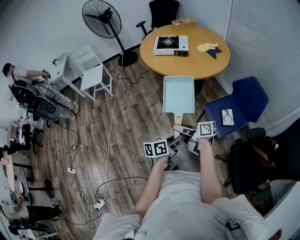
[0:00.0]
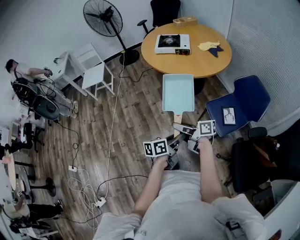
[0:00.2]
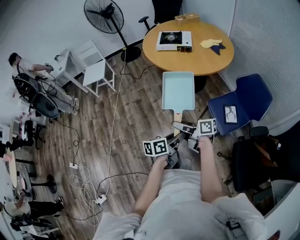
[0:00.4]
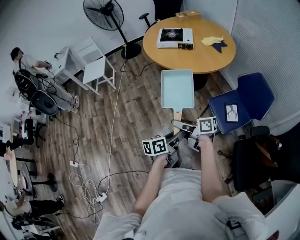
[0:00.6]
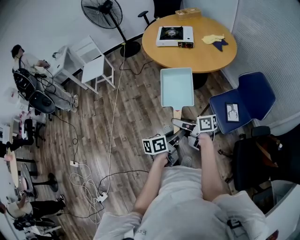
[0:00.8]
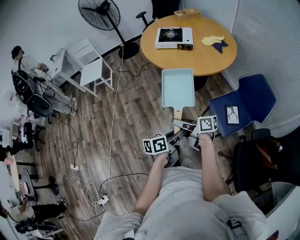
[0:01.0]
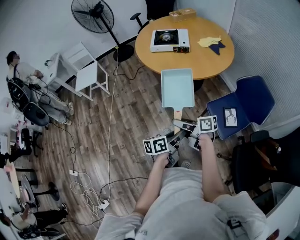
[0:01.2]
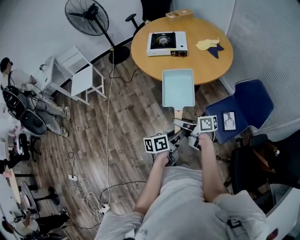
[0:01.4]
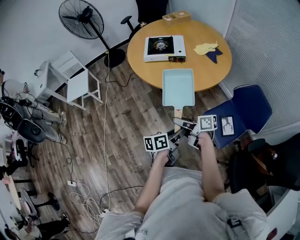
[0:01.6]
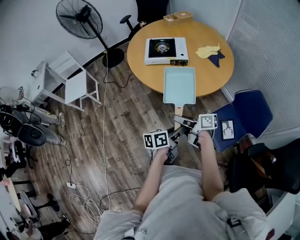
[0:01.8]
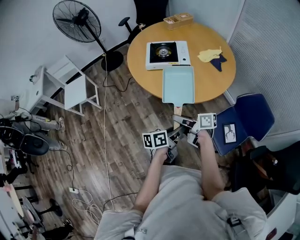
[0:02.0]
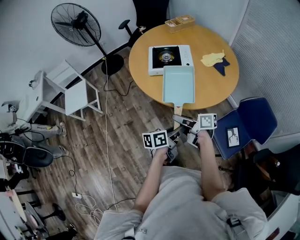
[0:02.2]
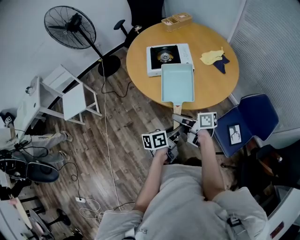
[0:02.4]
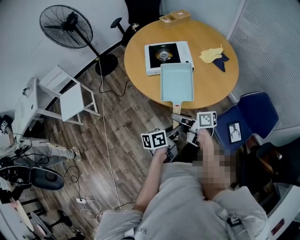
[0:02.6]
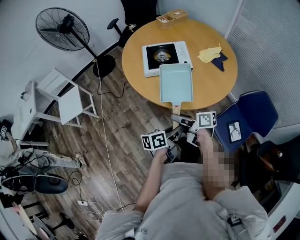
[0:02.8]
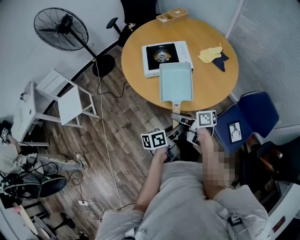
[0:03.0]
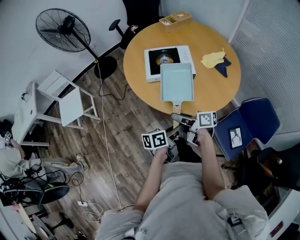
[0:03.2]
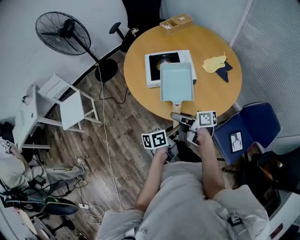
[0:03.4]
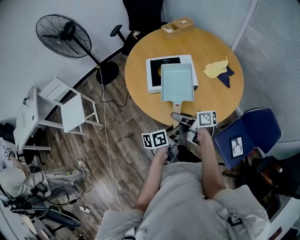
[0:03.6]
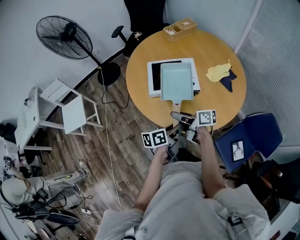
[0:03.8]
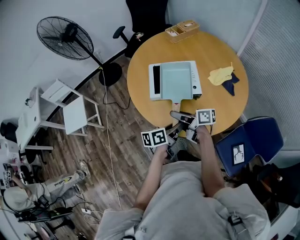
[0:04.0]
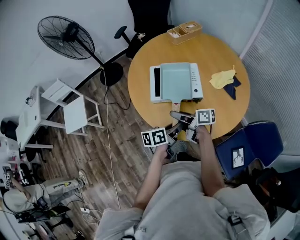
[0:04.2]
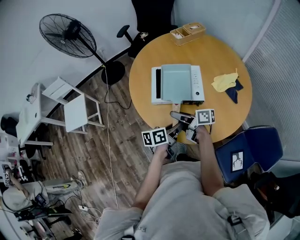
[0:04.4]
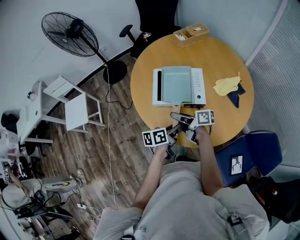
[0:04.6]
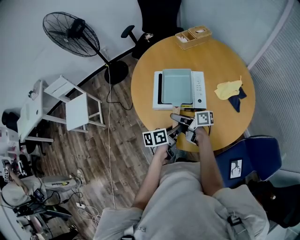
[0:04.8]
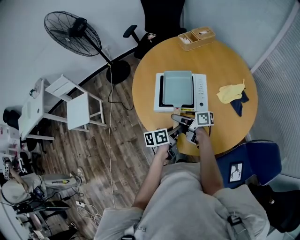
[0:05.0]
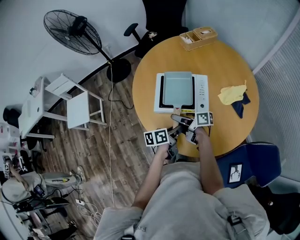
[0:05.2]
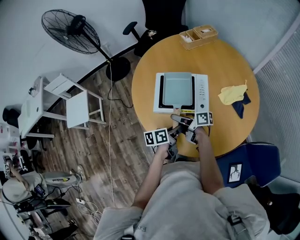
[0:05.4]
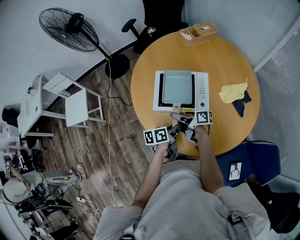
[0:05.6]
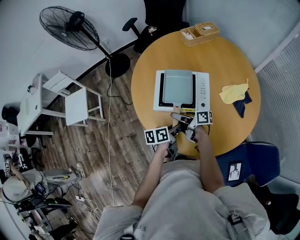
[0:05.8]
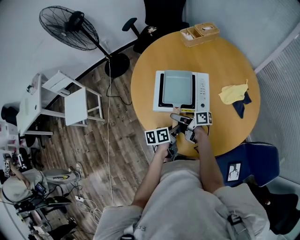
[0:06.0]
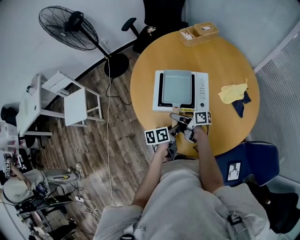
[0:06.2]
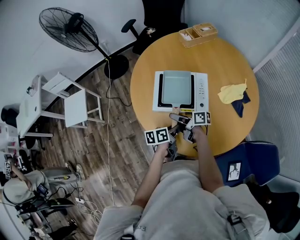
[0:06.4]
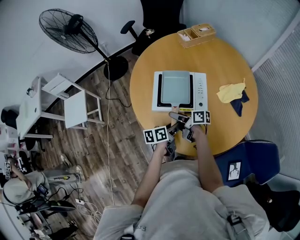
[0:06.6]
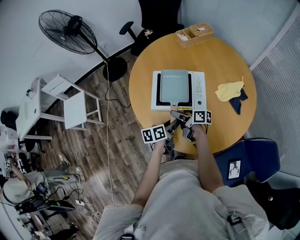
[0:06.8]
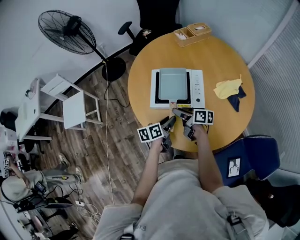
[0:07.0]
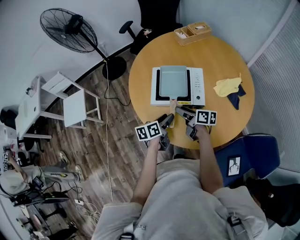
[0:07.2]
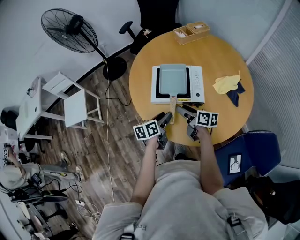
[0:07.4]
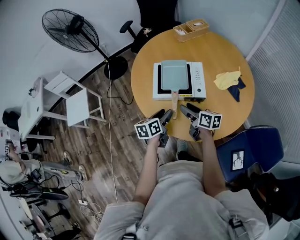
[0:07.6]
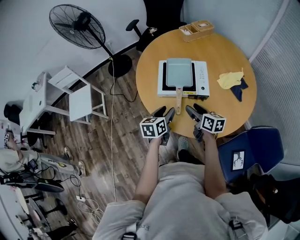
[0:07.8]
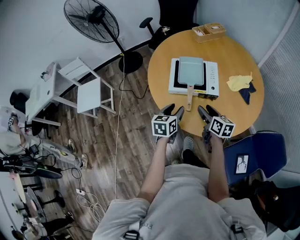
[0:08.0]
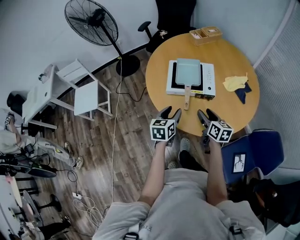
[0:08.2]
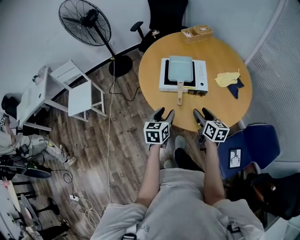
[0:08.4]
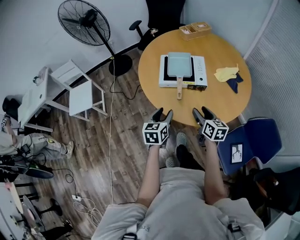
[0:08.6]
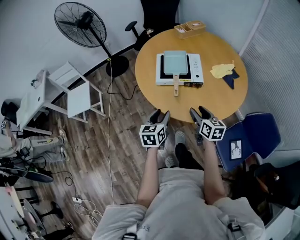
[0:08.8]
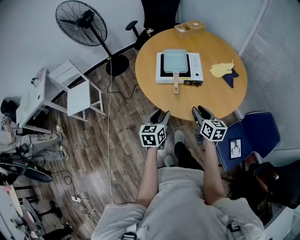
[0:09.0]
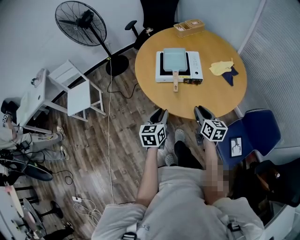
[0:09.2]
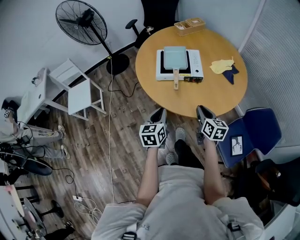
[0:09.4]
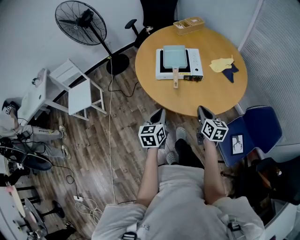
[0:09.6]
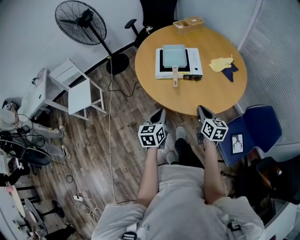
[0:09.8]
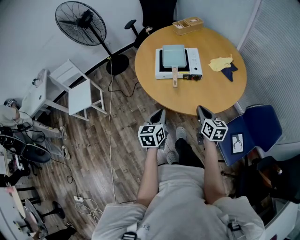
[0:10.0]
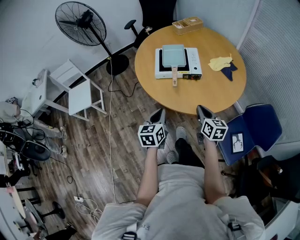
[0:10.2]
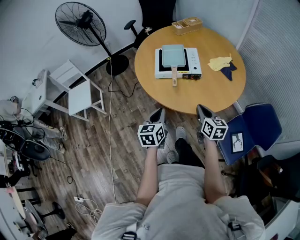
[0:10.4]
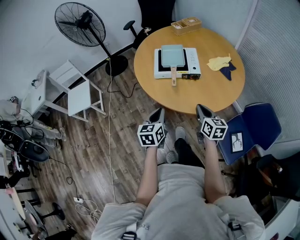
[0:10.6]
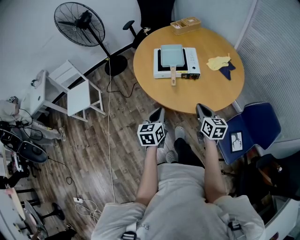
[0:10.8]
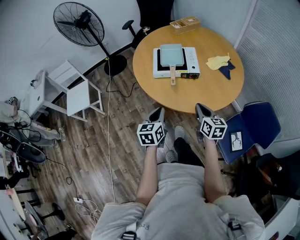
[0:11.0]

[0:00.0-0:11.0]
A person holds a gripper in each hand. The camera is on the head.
0:00.0 to 0:01.6: The grippers both shift forward by approximately 20 cm.
0:01.6 to 0:03.2: The grippers both shift forward by approximately 25 cm.
0:03.2 to 0:04.8: Both grippers travel together forward, roughly 20 cm.
0:04.8 to 0:06.2: The two grippers go approximately 5 cm downward.
0:06.2 to 0:07.8: The left gripper goes roughly 10 cm to the left and upward, swivels about 30 degrees, and opens up, while the right gripper travels backward, to the right and upward by about 10 cm, and swivels roughly 40 degrees.
0:07.8 to 0:09.4: The grippers both shift backward by some 15 cm. The right gripper turns by about 20 degrees, and closes its fingers; the left gripper closes its fingers.
0:09.4 to 0:11.0: There are only small adjustments of the grippers.

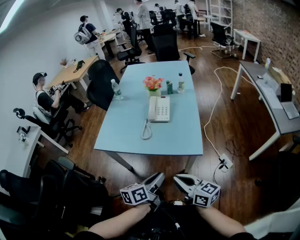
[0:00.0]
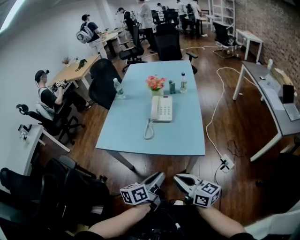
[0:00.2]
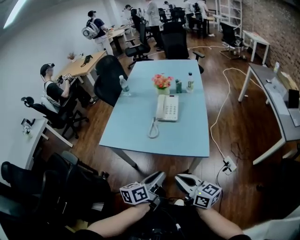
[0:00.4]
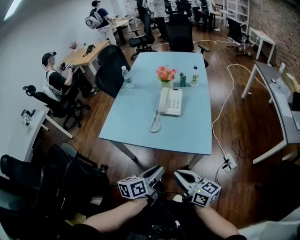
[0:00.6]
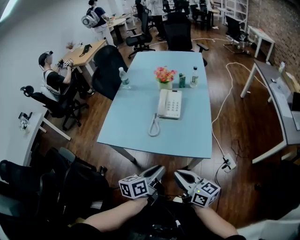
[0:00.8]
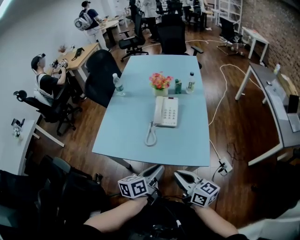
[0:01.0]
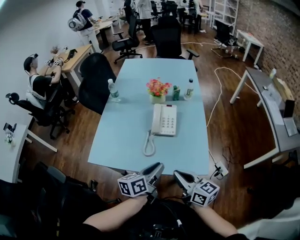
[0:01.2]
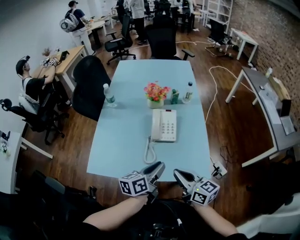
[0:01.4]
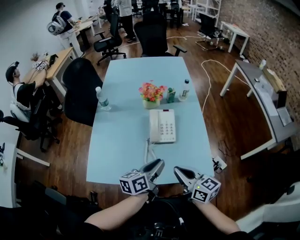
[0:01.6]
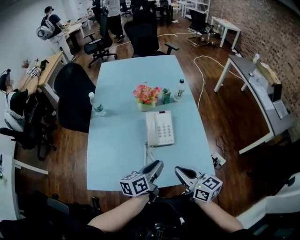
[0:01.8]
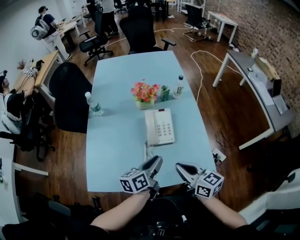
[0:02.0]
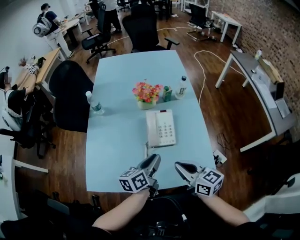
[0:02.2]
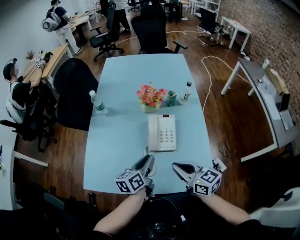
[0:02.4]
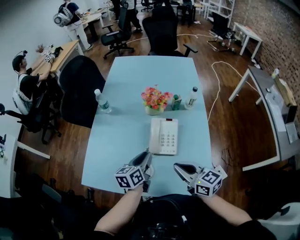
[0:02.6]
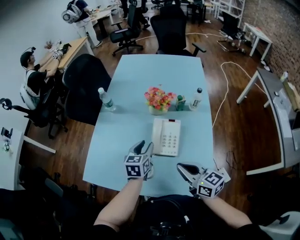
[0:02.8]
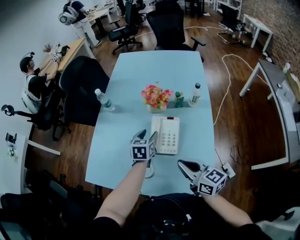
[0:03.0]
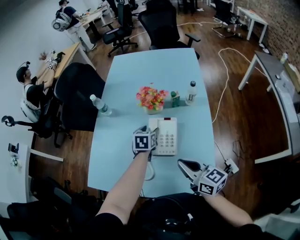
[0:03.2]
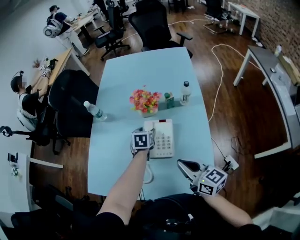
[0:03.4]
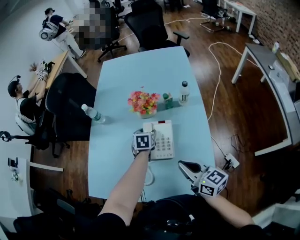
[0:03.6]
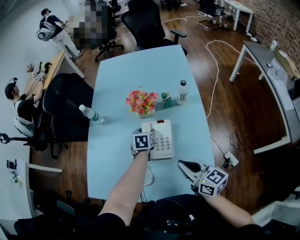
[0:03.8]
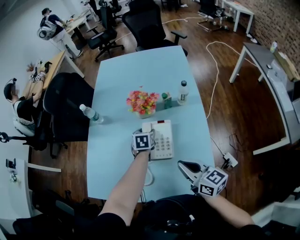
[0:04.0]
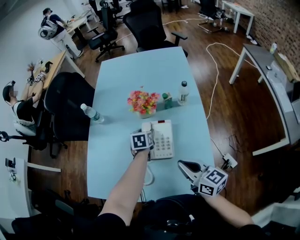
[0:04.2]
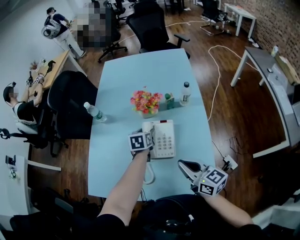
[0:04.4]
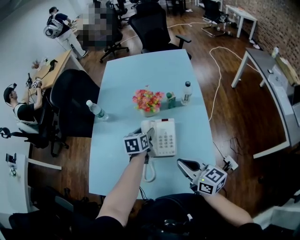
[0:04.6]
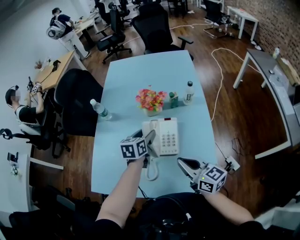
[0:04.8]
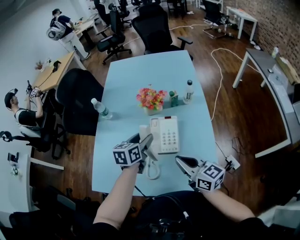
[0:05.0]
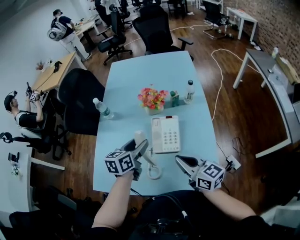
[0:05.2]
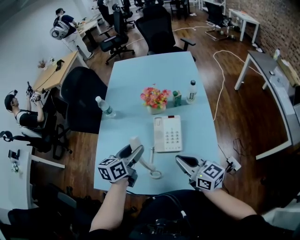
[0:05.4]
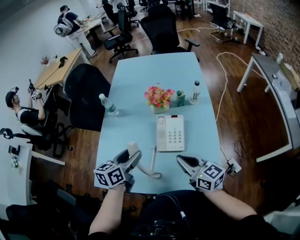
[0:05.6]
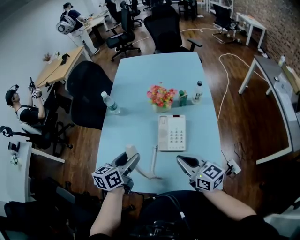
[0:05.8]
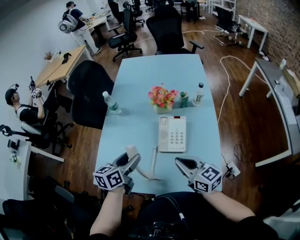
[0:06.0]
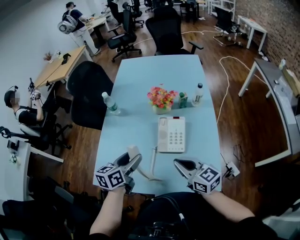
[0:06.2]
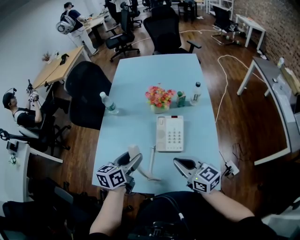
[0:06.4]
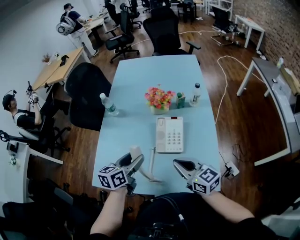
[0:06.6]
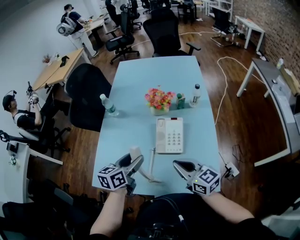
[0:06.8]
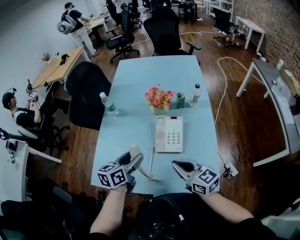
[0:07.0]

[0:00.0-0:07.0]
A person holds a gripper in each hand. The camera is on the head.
0:00.0 to 0:01.4: Both grippers travel together forward, roughly 25 cm.
0:01.4 to 0:02.8: The left gripper travels forward by some 20 cm, and turns by some 40 degrees; the right gripper heads forward, covering roughly 15 cm.
0:02.8 to 0:04.2: The left gripper shifts approximately 15 cm forward, downward and to the right, and opens its fingers.
0:04.2 to 0:05.6: The right gripper travels to the left by approximately 5 cm. Meanwhile the left gripper goes about 25 cm backward, upward and to the left, and swivels roughly 30 degrees.
0:05.6 to 0:07.0: There are only small adjustments of the grippers.

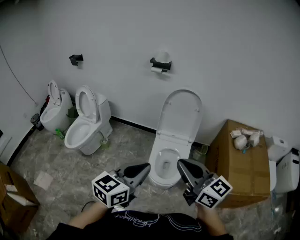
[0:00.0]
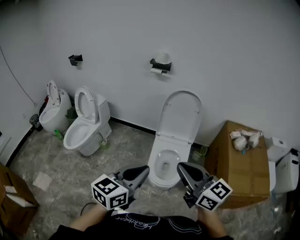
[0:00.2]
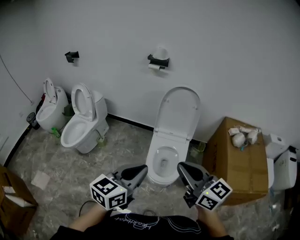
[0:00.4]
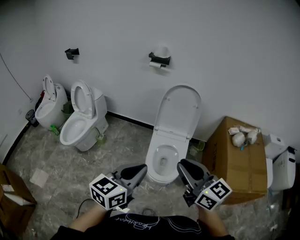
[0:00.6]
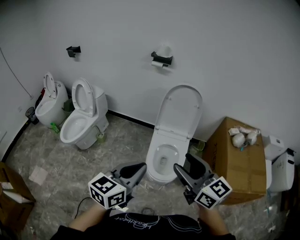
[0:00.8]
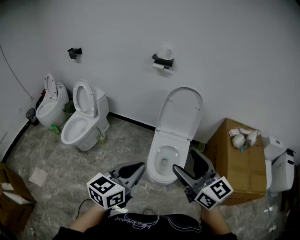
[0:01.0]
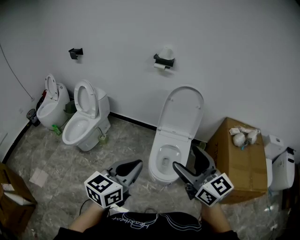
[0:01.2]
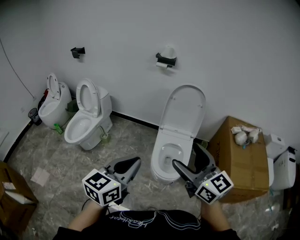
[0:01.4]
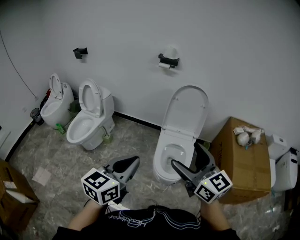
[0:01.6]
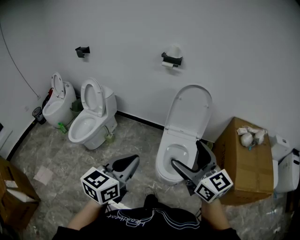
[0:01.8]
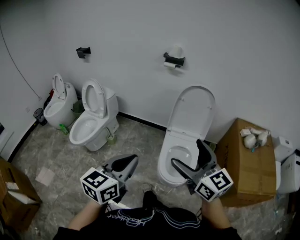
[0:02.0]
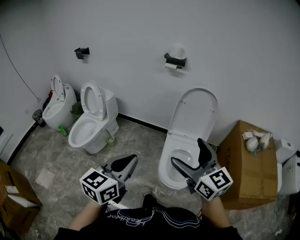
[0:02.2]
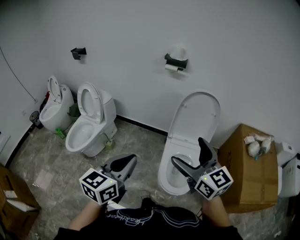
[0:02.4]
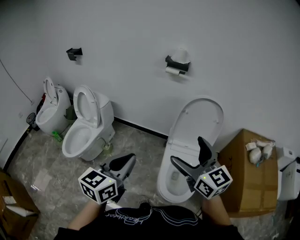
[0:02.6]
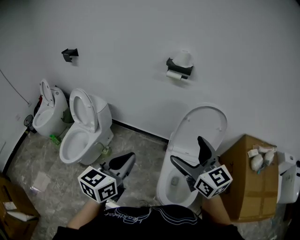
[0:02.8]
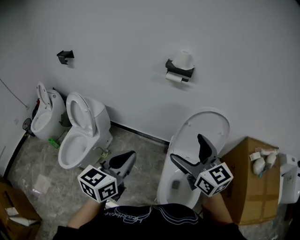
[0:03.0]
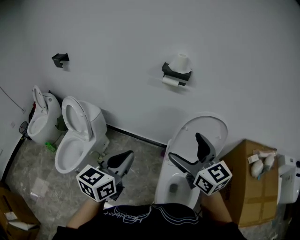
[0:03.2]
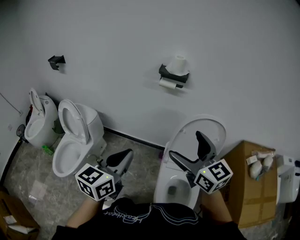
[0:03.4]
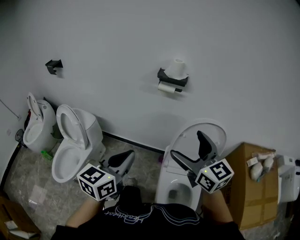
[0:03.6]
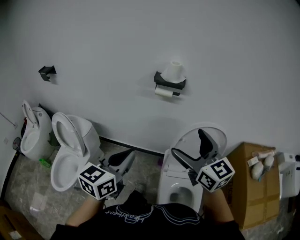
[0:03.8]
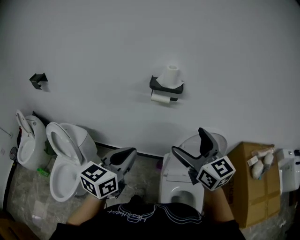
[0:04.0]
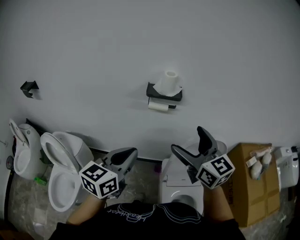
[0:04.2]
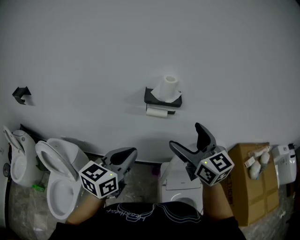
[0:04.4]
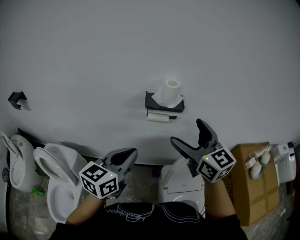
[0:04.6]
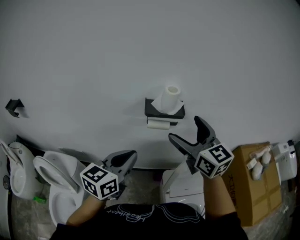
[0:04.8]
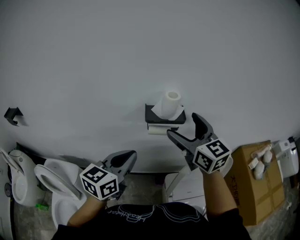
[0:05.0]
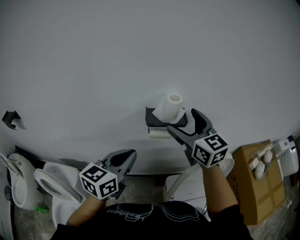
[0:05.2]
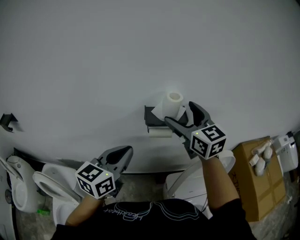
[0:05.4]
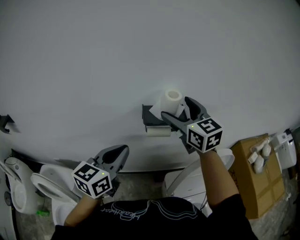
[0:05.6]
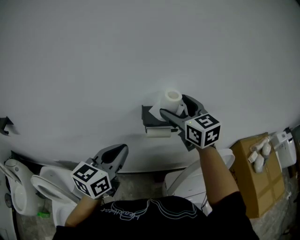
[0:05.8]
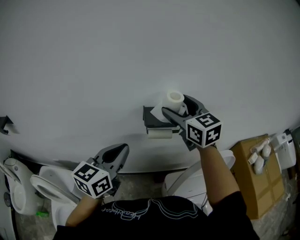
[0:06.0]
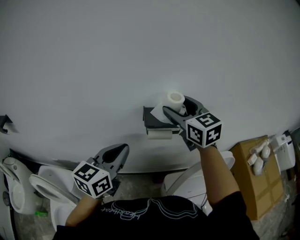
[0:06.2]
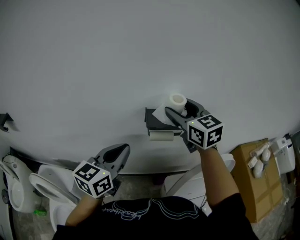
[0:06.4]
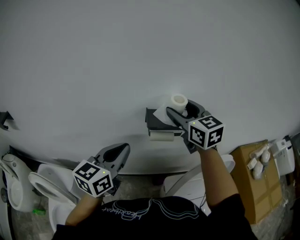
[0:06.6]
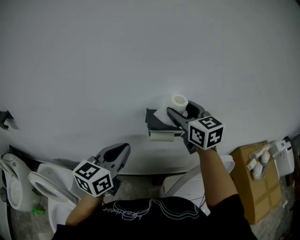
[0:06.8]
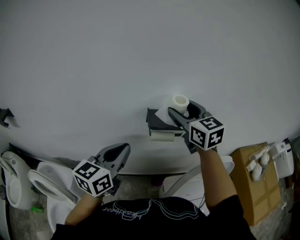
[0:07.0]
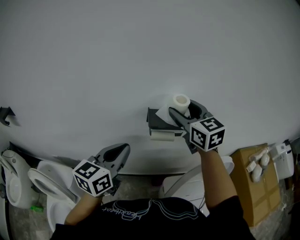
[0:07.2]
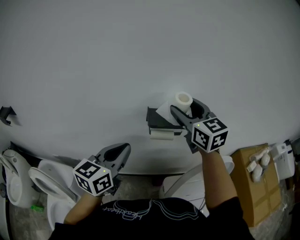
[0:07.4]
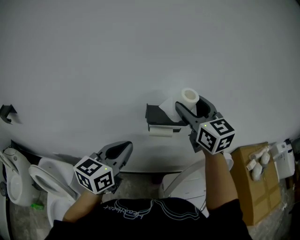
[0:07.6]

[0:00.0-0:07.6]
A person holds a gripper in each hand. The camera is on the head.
0:00.0 to 0:01.6: The right gripper is displaced to the left by approximately 5 cm, and opens. Meanwhile the left gripper heads to the left, covering approximately 10 cm.
0:01.6 to 0:03.0: The grippers both shift forward by roughly 35 cm.
0:03.0 to 0:04.6: Both grippers travel together forward, about 35 cm.
0:04.6 to 0:06.0: The left gripper is displaced forward and to the left by approximately 15 cm, while the right gripper heads forward, covering about 20 cm.
0:06.0 to 0:07.6: The right gripper moves approximately 5 cm.
